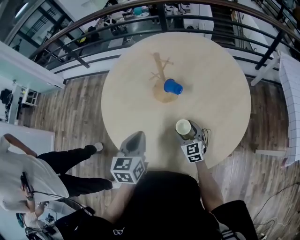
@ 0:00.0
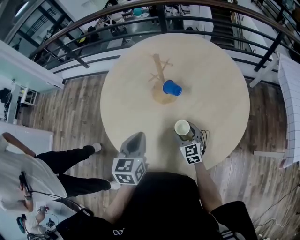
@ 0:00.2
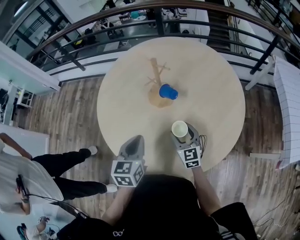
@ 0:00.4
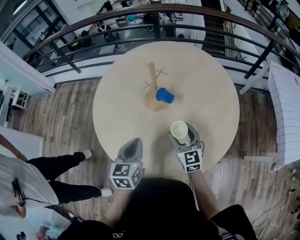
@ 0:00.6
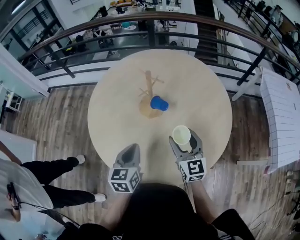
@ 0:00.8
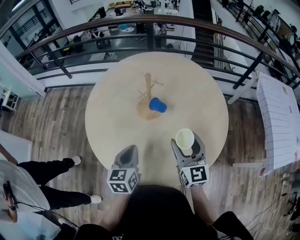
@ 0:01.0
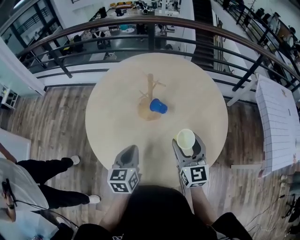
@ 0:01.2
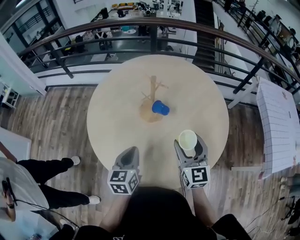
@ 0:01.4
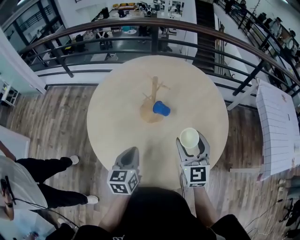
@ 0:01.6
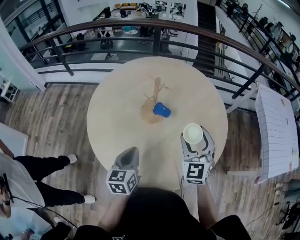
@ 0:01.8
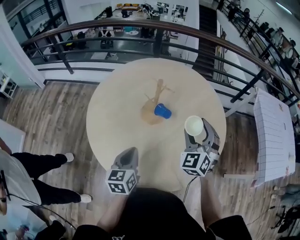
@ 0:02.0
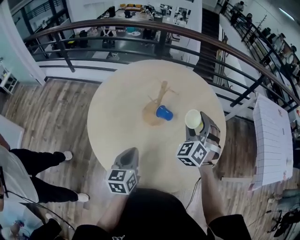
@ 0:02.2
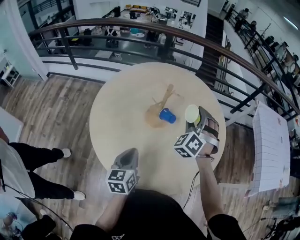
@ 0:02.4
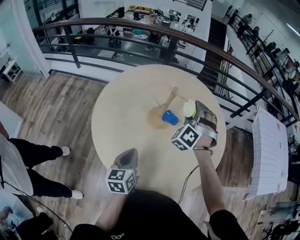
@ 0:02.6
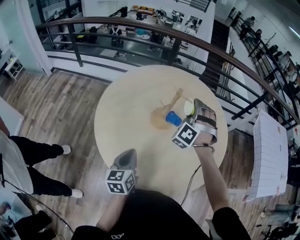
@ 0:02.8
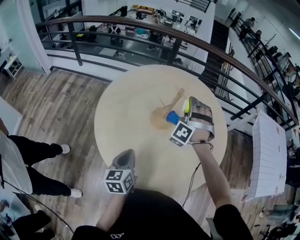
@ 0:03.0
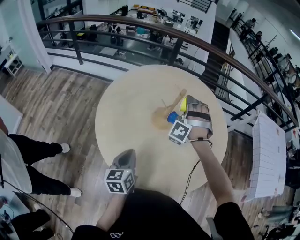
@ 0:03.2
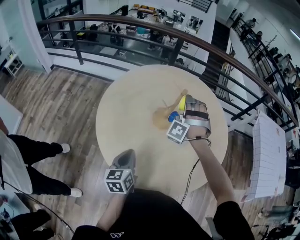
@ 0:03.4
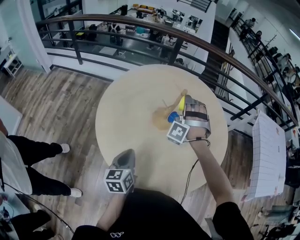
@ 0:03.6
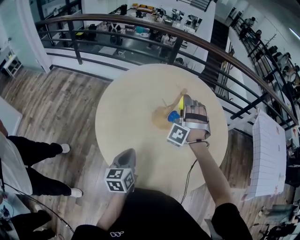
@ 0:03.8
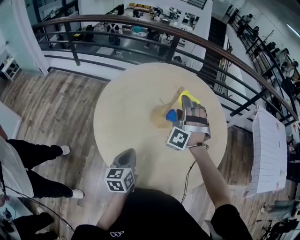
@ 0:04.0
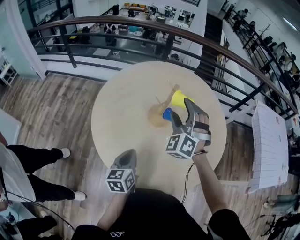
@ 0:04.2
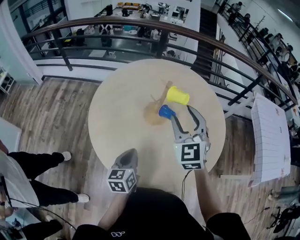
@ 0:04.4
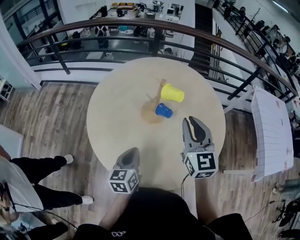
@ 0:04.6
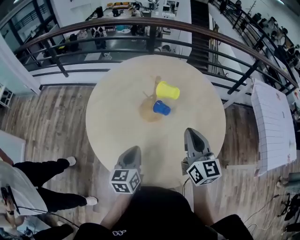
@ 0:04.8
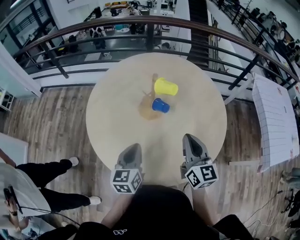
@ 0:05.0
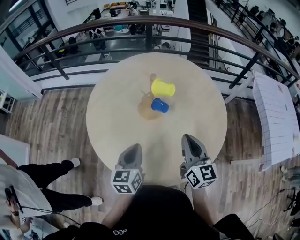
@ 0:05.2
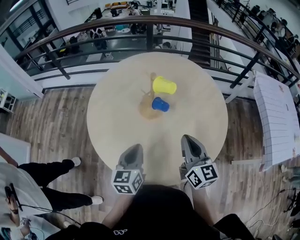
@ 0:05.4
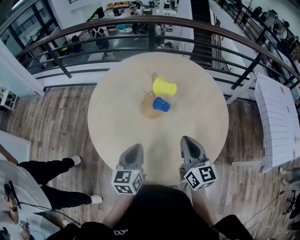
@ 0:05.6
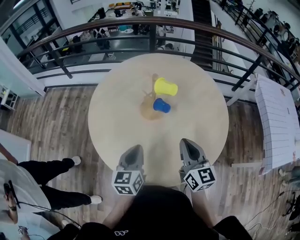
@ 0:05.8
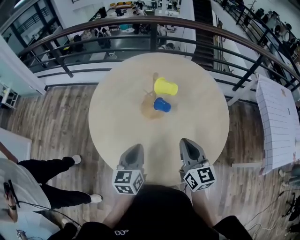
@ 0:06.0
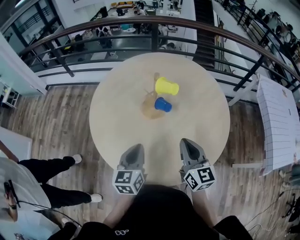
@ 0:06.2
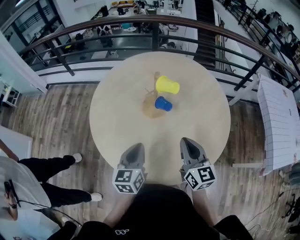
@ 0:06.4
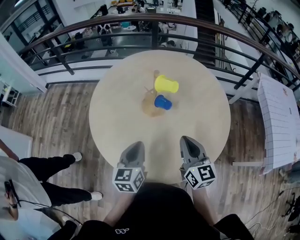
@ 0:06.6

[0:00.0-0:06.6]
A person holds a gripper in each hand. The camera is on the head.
0:00.0 to 0:01.6: The right gripper heads upward, covering some 25 cm.
0:01.6 to 0:03.2: The left gripper moves to the left, about 10 cm. Meanwhile the right gripper heads to the left and forward, covering about 20 cm, and twists some 90 degrees counterclockwise, seen from behind.
0:03.2 to 0:05.0: The right gripper is displaced backward and to the right by some 25 cm, twists roughly 110 degrees clockwise, seen from behind, and closes up, while the left gripper travels to the right by roughly 10 cm.
0:05.0 to 0:06.6: The grippers make only small movements.

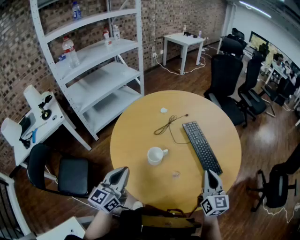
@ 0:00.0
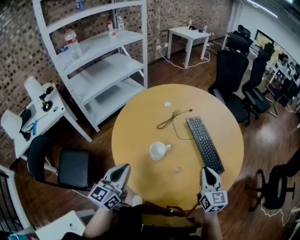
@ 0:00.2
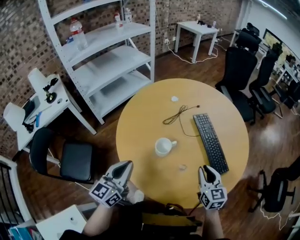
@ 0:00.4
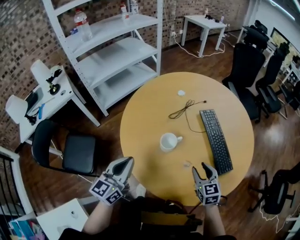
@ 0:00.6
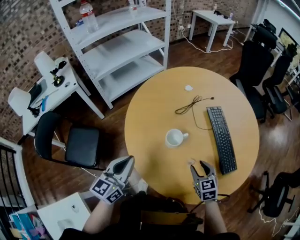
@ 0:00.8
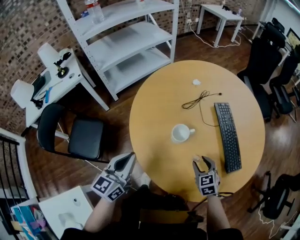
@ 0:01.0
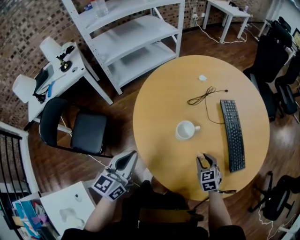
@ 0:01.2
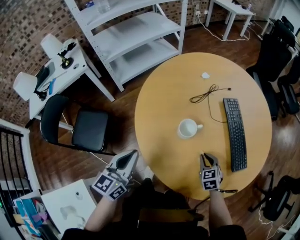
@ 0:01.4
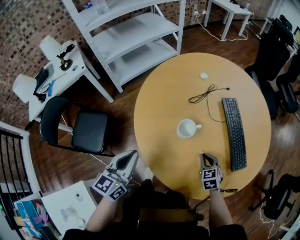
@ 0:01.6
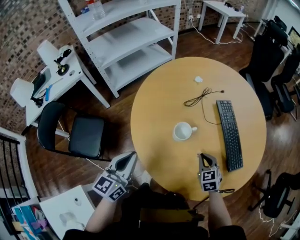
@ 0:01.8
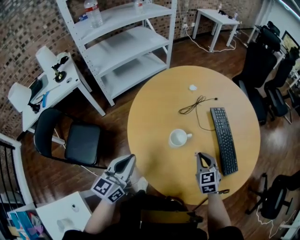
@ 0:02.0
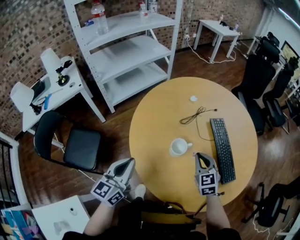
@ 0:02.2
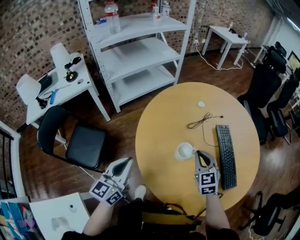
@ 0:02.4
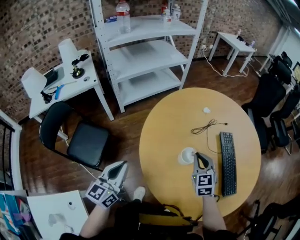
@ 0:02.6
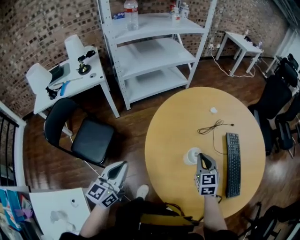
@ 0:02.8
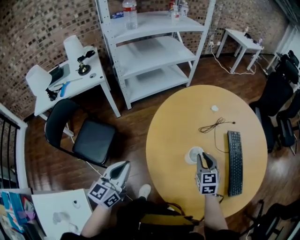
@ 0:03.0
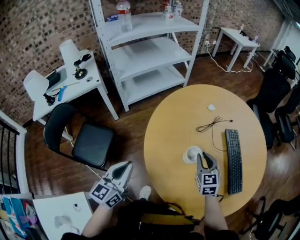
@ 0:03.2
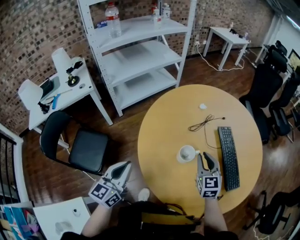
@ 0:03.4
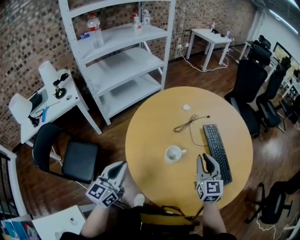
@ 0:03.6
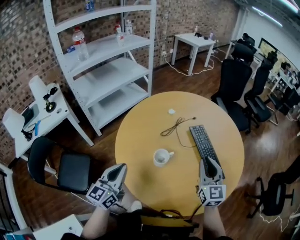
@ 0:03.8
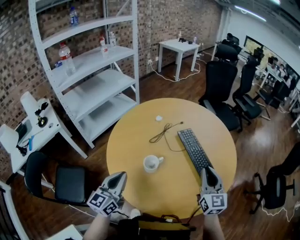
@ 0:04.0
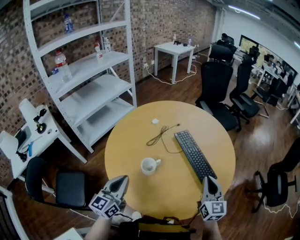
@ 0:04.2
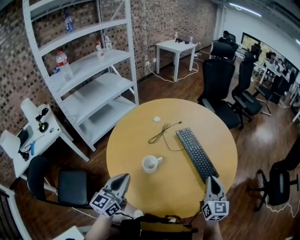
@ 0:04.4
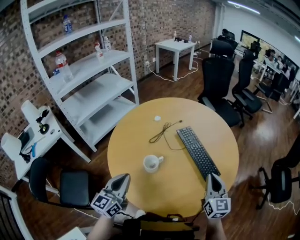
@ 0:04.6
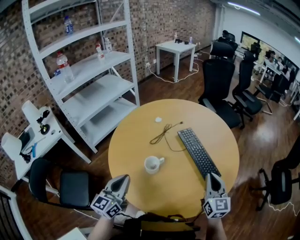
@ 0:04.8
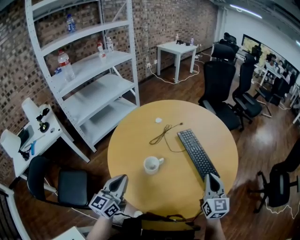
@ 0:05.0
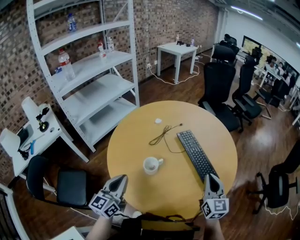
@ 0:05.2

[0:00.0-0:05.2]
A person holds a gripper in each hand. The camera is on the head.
0:00.0 to 0:01.8: The left gripper travels to the left by about 5 cm. The right gripper travels downward and to the left by roughly 20 cm, tilts its fingers approximately 40 degrees downward, and opens, then closes once more.
0:01.8 to 0:03.4: The left gripper is displaced to the left by some 5 cm; the right gripper goes up and down, approximately 10 cm each way, reversing 2 times, and swivels some 20 degrees.
0:03.4 to 0:05.2: The right gripper heads to the right, covering approximately 20 cm, and turns by approximately 30 degrees; the left gripper shifts some 10 cm to the right.

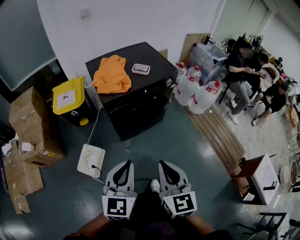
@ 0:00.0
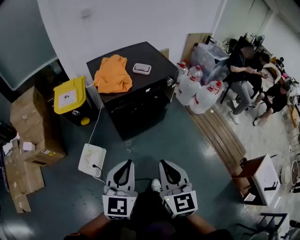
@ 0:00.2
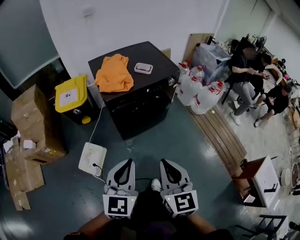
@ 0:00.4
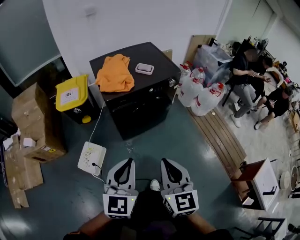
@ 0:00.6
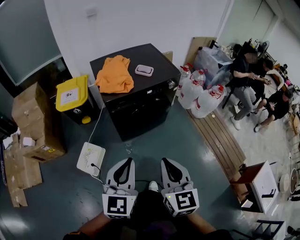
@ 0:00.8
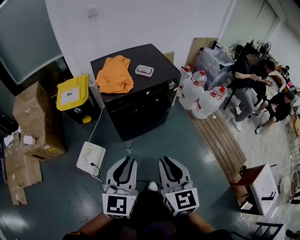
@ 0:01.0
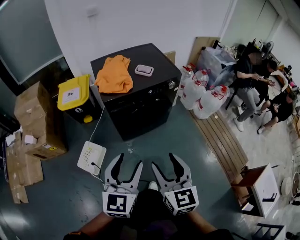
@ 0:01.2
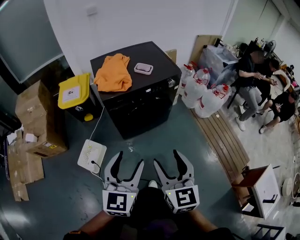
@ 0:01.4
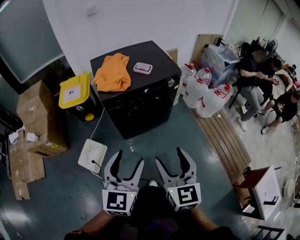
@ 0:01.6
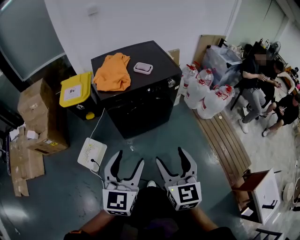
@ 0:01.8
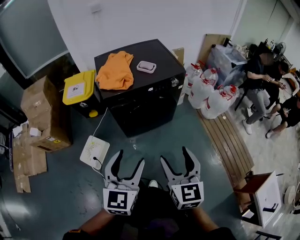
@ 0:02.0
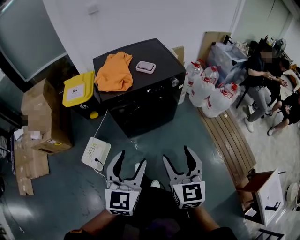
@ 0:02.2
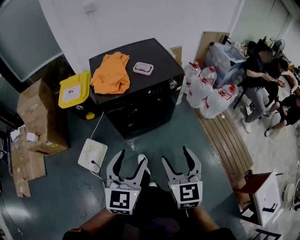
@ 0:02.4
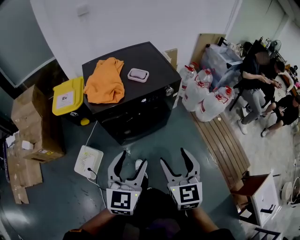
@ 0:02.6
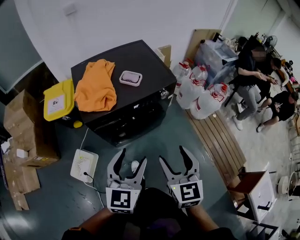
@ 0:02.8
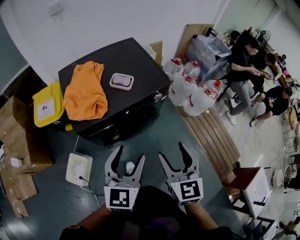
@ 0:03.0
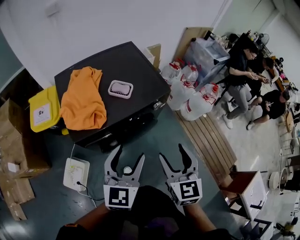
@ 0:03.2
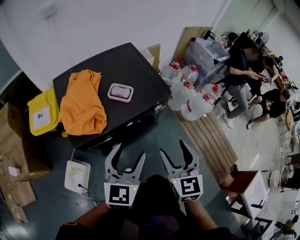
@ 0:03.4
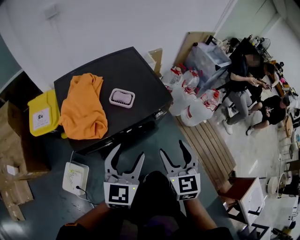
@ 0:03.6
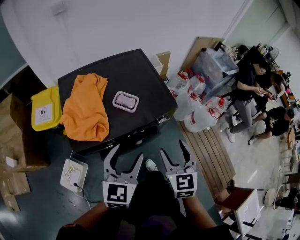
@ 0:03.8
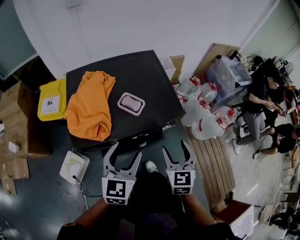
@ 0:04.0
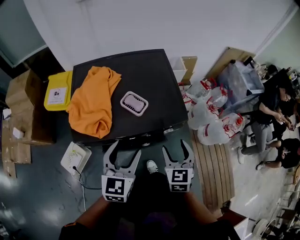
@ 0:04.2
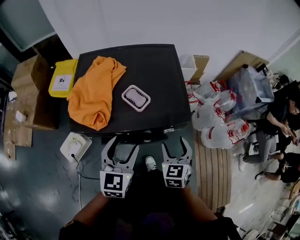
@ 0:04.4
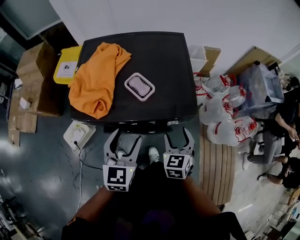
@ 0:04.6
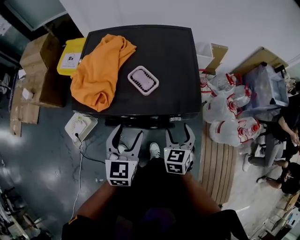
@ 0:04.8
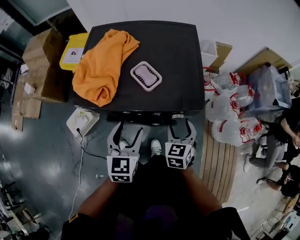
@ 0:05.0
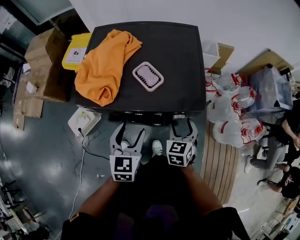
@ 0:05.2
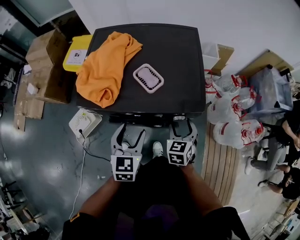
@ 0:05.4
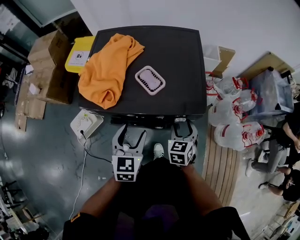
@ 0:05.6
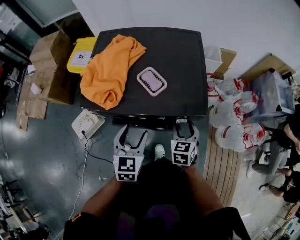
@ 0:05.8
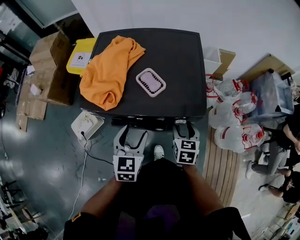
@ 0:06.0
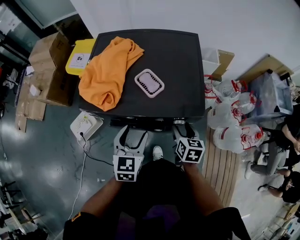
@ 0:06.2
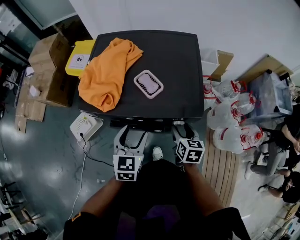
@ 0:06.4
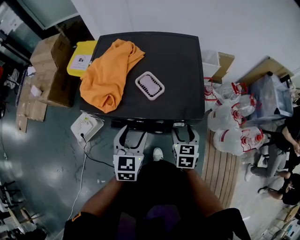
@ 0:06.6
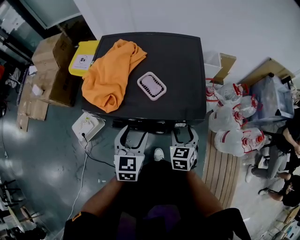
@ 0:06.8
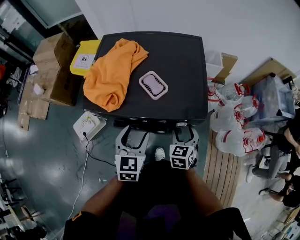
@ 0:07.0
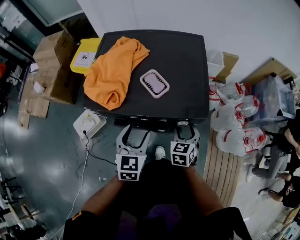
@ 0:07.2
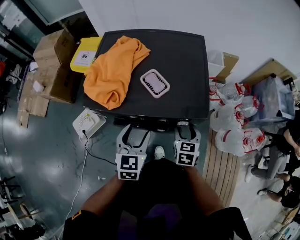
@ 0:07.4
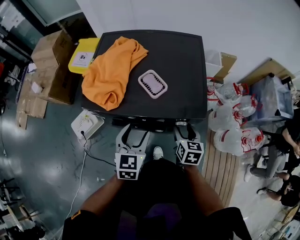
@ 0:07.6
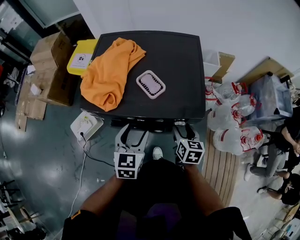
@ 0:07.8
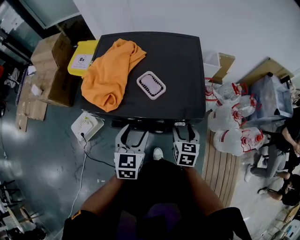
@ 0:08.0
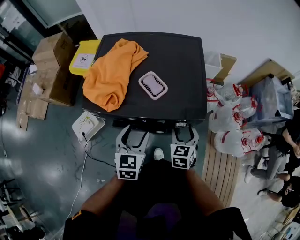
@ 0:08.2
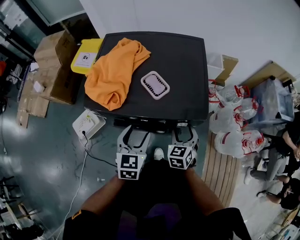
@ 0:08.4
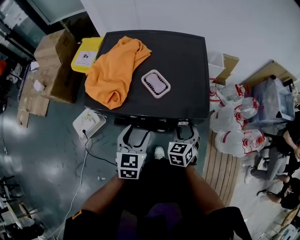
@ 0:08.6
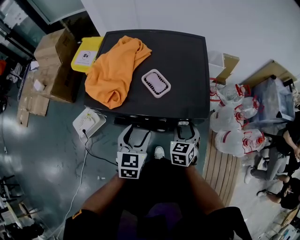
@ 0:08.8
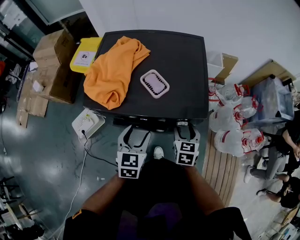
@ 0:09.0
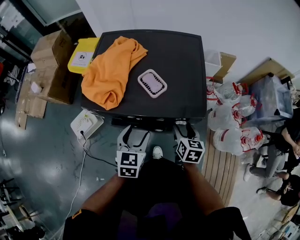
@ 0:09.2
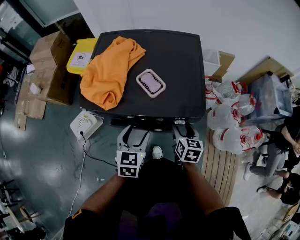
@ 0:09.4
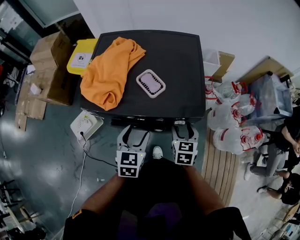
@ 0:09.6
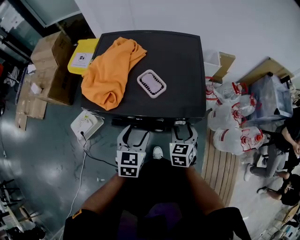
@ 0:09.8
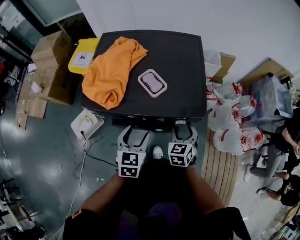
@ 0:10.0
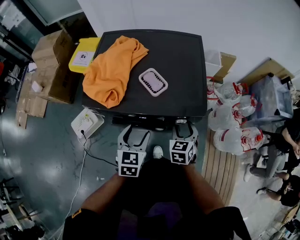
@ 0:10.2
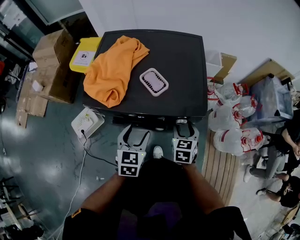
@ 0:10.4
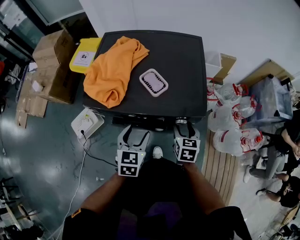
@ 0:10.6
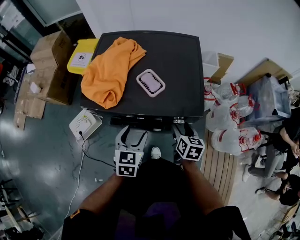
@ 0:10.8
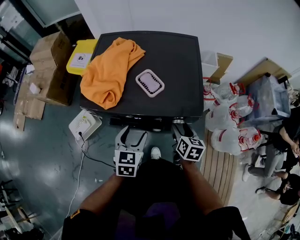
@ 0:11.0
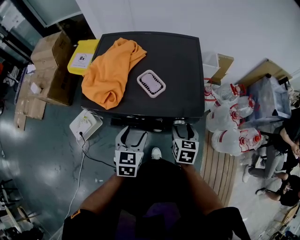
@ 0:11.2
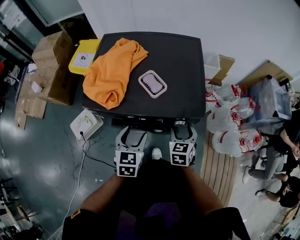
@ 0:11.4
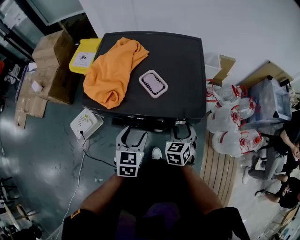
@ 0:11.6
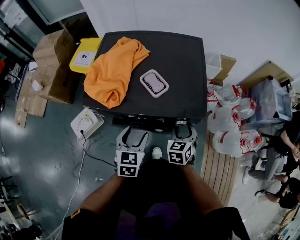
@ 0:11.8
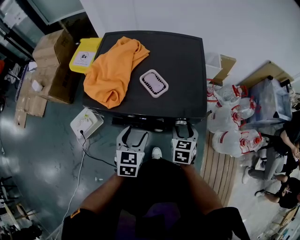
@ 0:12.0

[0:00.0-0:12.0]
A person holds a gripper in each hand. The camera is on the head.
0:00.0 to 0:01.6: The grippers both shift to the right by approximately 10 cm. The right gripper opens, while the left gripper opens its fingers.
0:01.6 to 0:03.0: The grippers both shift forward by about 25 cm.
0:03.0 to 0:04.4: The right gripper heads forward and downward, covering some 30 cm, and rotates some 20 degrees; the left gripper travels forward by some 20 cm, and turns by roughly 20 degrees.
0:04.4 to 0:06.0: The grippers both shift downward by about 10 cm.
0:06.0 to 0:07.6: There are only small adjustments of the grippers.
0:09.0 to 0:10.4: There are only small adjustments of the grippers.
